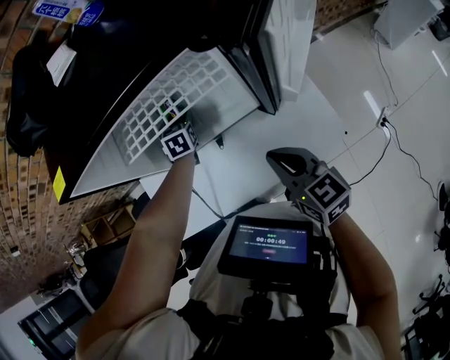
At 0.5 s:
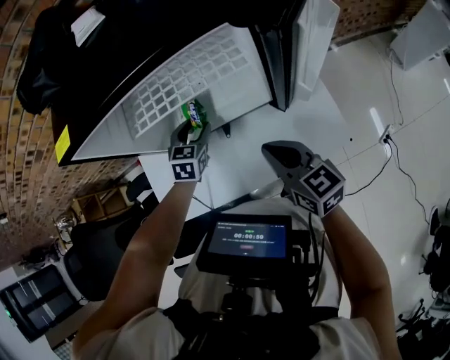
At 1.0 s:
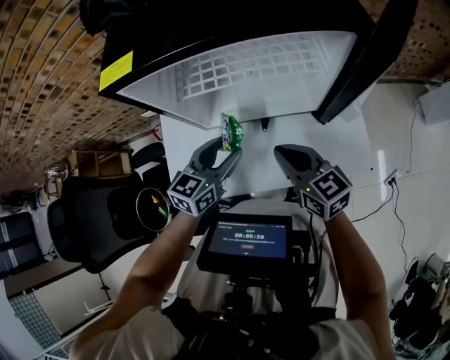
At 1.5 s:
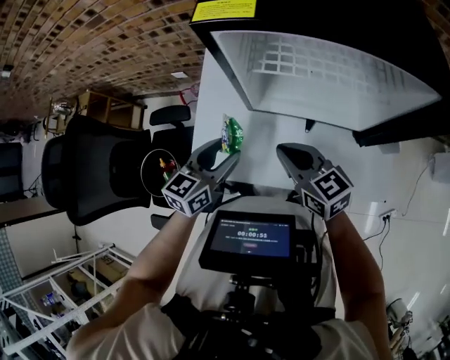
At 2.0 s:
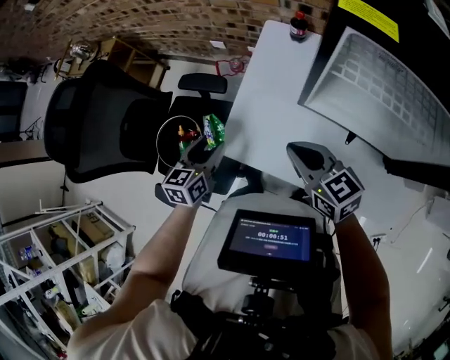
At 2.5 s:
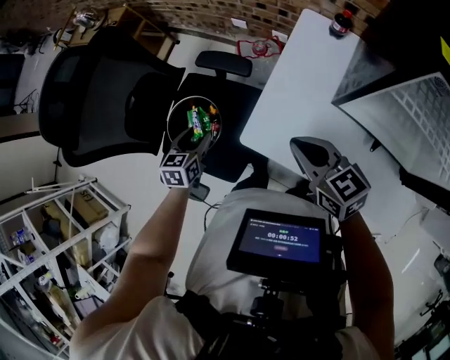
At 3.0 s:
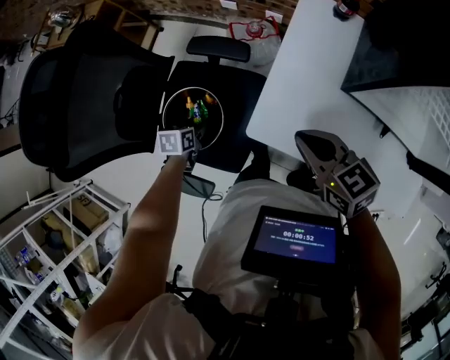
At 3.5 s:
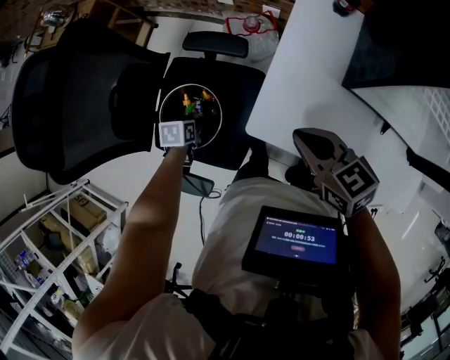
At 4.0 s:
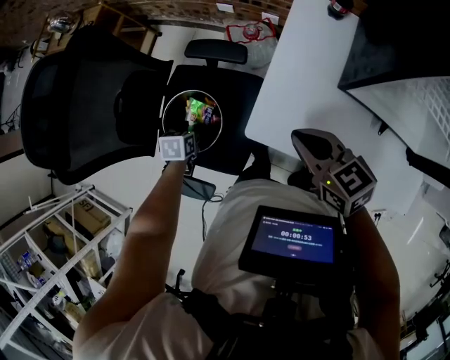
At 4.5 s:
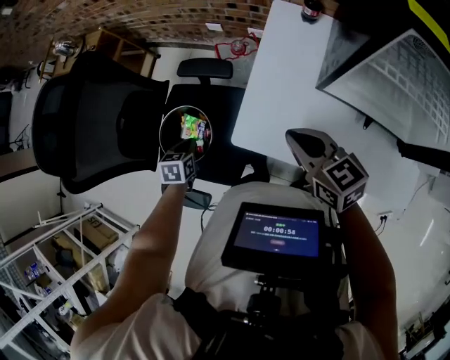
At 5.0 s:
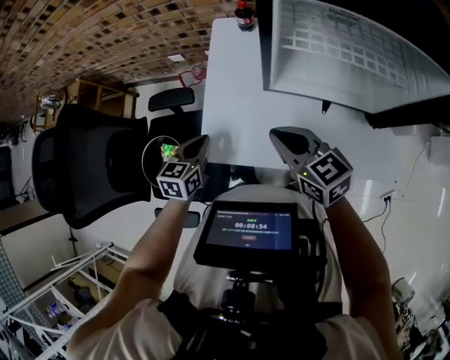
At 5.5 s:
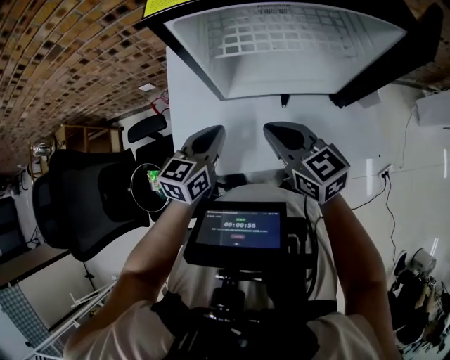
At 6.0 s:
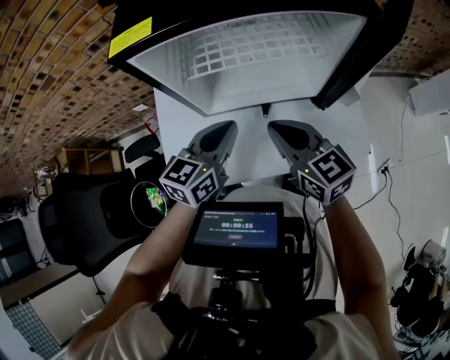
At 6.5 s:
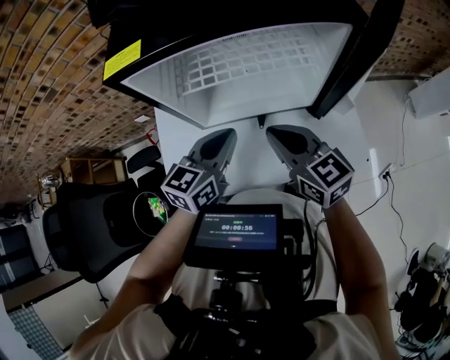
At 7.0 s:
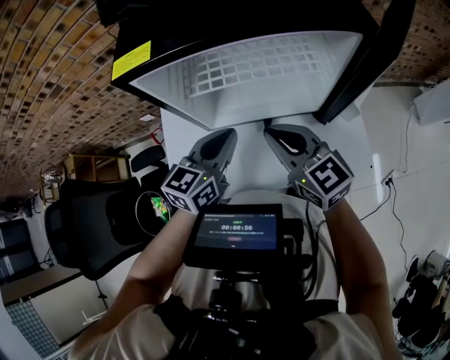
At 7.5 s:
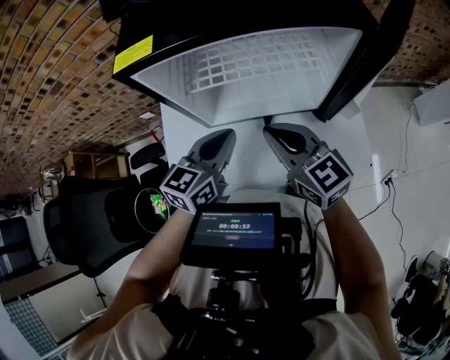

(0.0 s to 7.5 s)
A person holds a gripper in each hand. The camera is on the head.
0.0 s - 2.0 s: The left gripper ends up about 50 cm from where it was, and turns by roughly 40 degrees; the right gripper changes place by approximately 35 cm, and swivels approximately 50 degrees.
2.0 s - 4.0 s: The left gripper is displaced to the left and downward by some 30 cm, and angles its fingers downward, by about 30 degrees. Meanwhile the right gripper goes approximately 10 cm to the left.
4.0 s - 5.5 s: The left gripper ends up some 50 cm from where it was, tilts its fingers about 40 degrees upward, and closes. The right gripper ends up roughly 25 cm from where it was, and changes its angle by roughly 30 degrees.
5.5 s - 7.5 s: The grippers both shift to the right and upward by approximately 10 cm.

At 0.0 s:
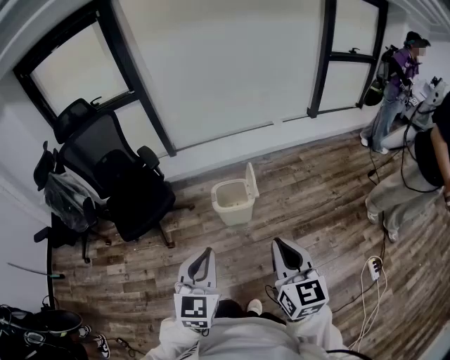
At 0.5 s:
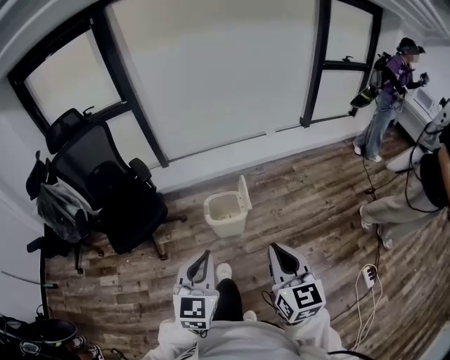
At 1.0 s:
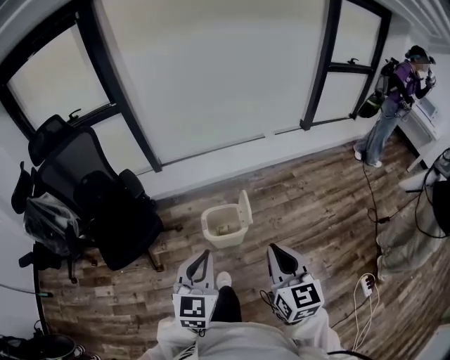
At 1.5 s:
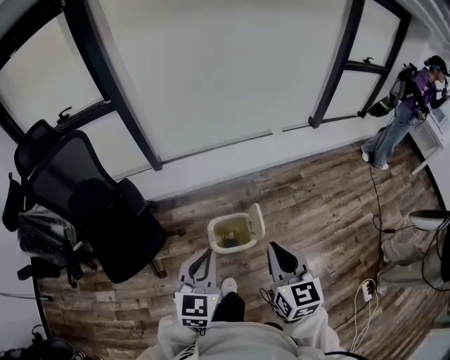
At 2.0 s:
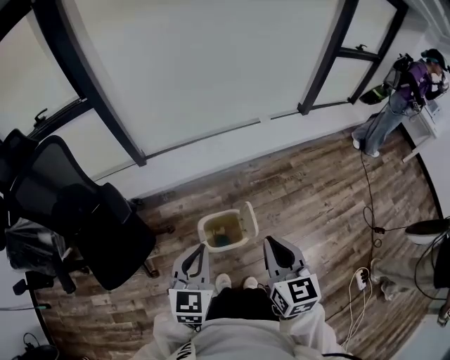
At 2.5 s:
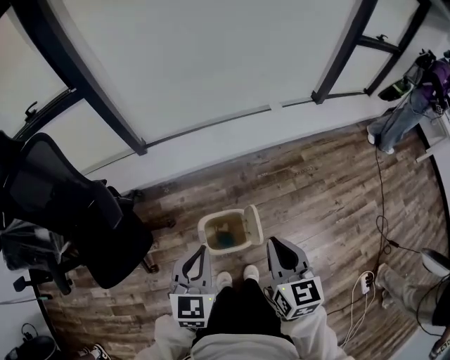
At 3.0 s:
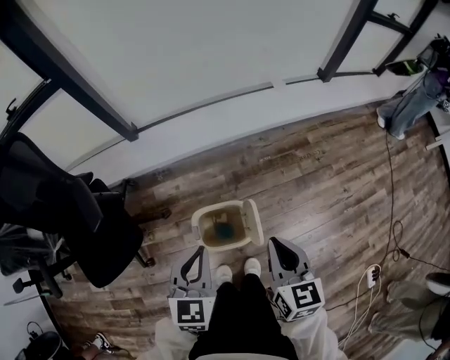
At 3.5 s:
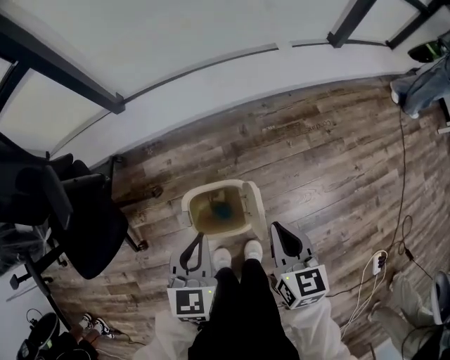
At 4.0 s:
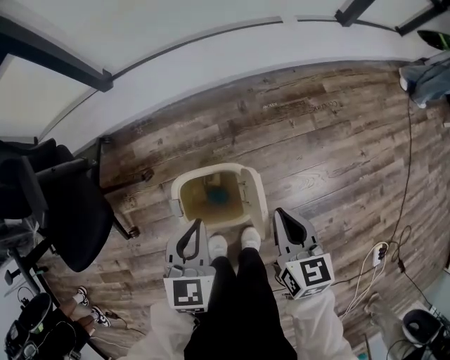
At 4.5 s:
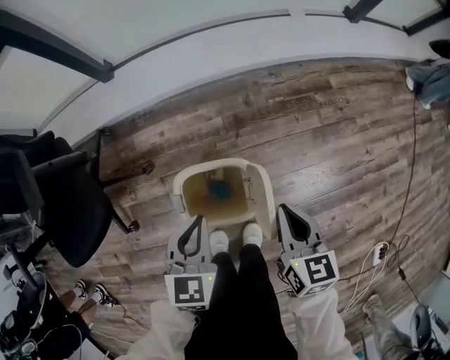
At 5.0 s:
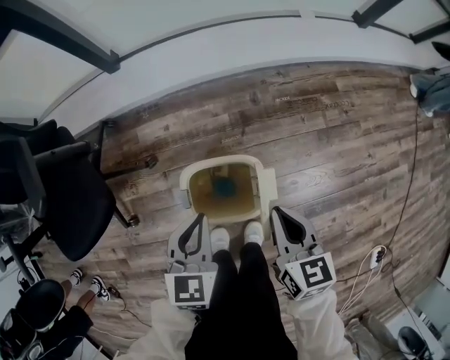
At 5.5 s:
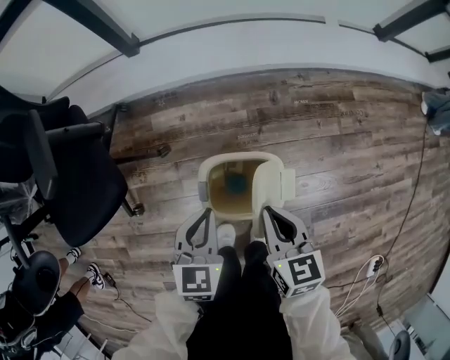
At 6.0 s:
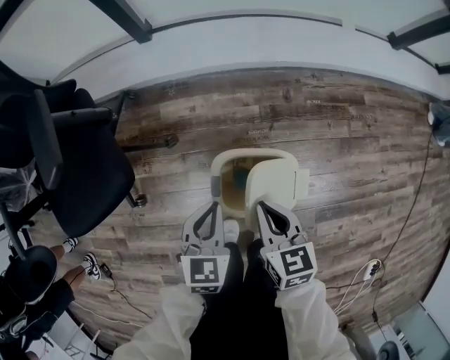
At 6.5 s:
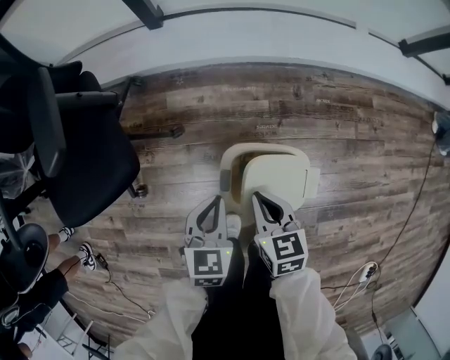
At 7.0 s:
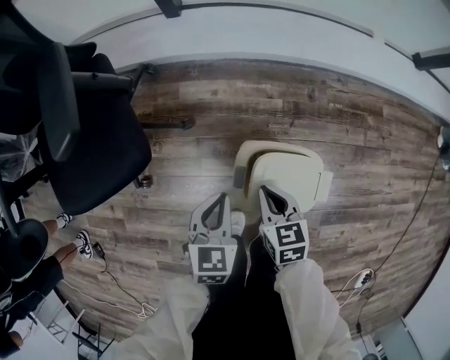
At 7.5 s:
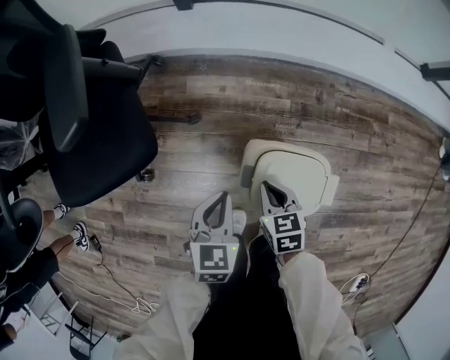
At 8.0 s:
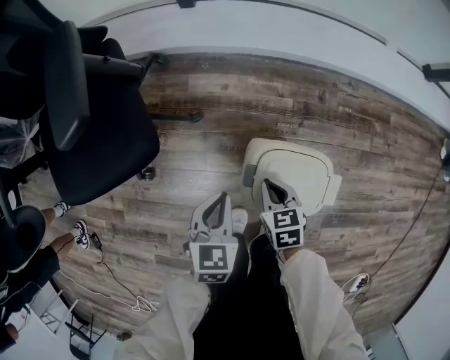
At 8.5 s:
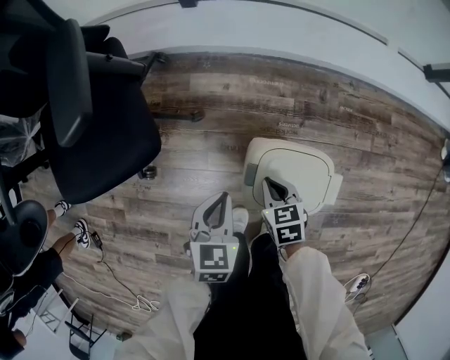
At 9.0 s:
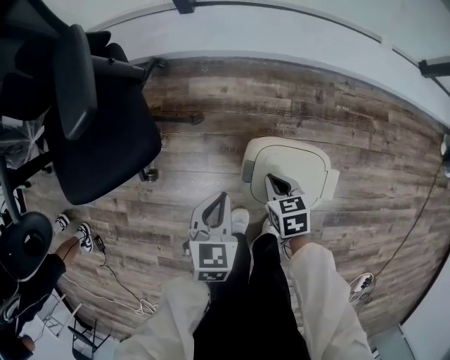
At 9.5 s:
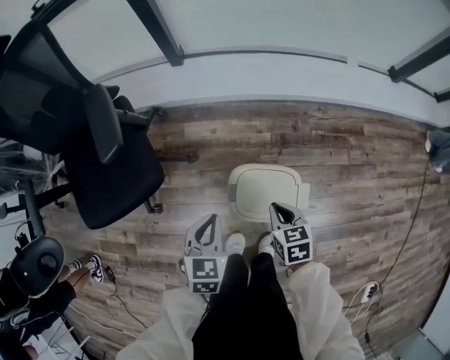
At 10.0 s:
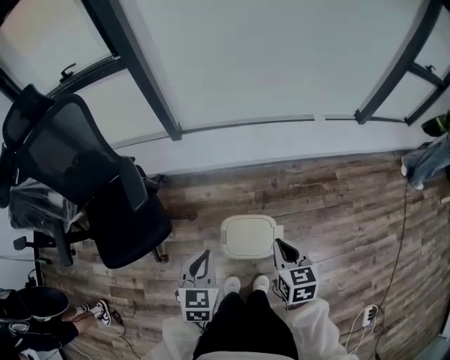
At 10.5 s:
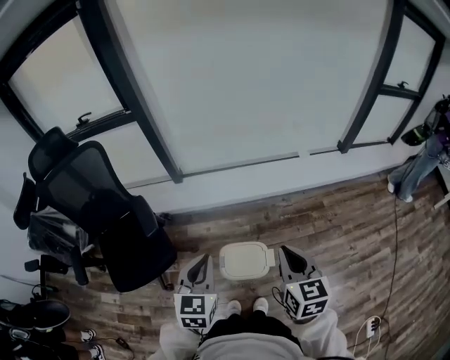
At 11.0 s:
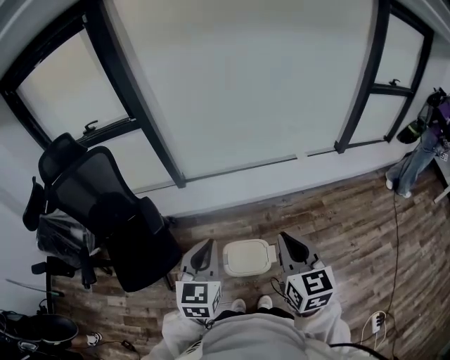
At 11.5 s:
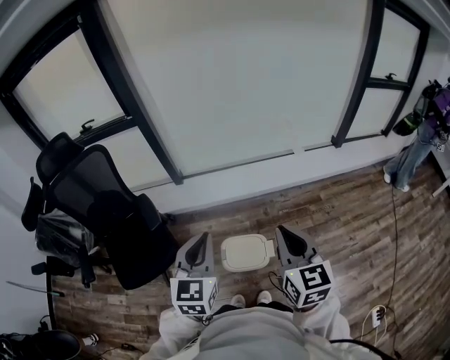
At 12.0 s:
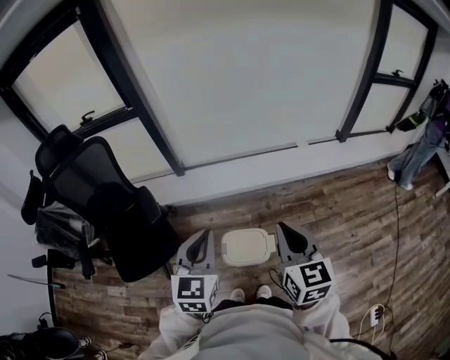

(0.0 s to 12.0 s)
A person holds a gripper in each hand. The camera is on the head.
0.0 s - 2.0 s: Both grippers are carried forward, roughly 40 cm.
2.0 s - 4.0 s: Both grippers travel together downward, approximately 40 cm.
4.0 s - 6.0 s: The right gripper heads to the left, covering approximately 20 cm. The left gripper is displaced to the left and downward by approximately 15 cm.
6.0 s - 8.0 s: The left gripper shifts about 10 cm to the left and downward. Meanwhile the right gripper shifts some 15 cm downward and to the left, and swivels approximately 20 degrees.
8.0 s - 10.0 s: The grippers both shift upward by roughly 35 cm. The right gripper swivels approximately 20 degrees.
10.0 s - 12.0 s: Both grippers travel together upward, approximately 30 cm. The right gripper changes its angle by approximately 20 degrees.

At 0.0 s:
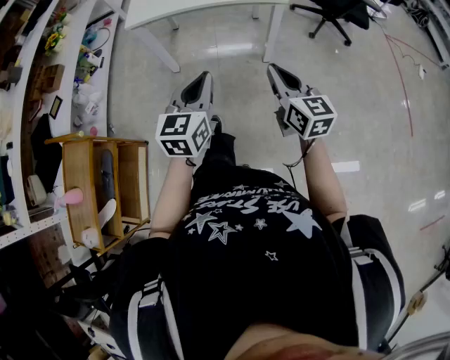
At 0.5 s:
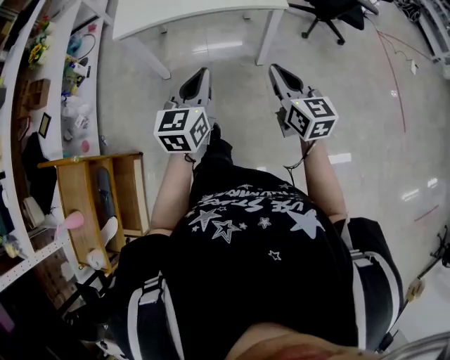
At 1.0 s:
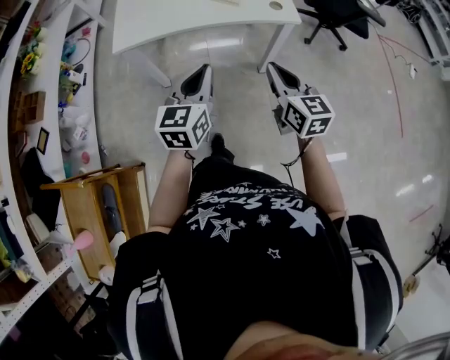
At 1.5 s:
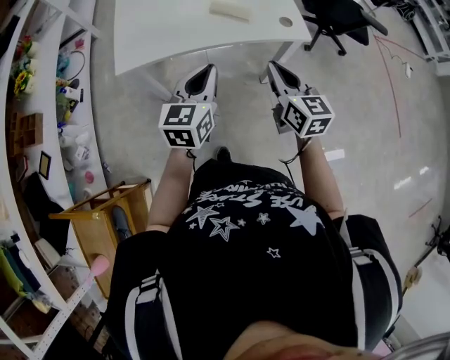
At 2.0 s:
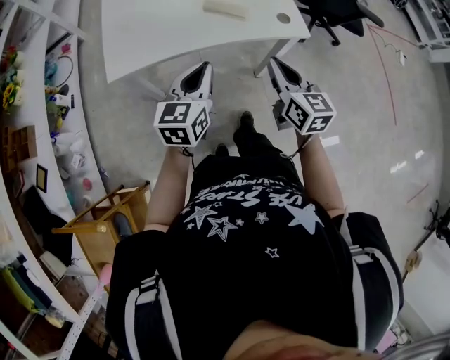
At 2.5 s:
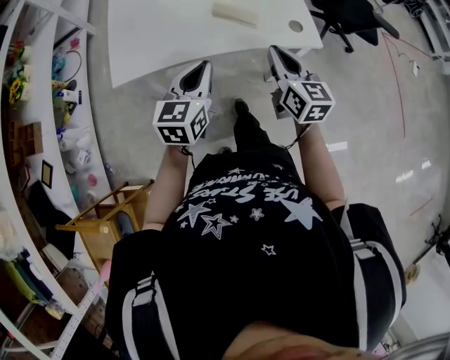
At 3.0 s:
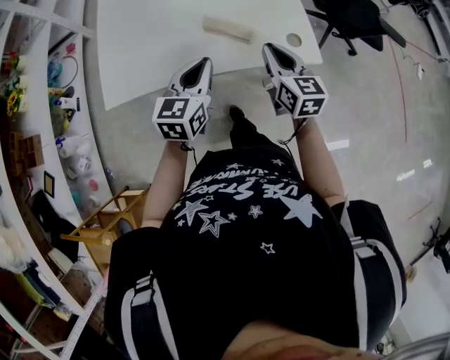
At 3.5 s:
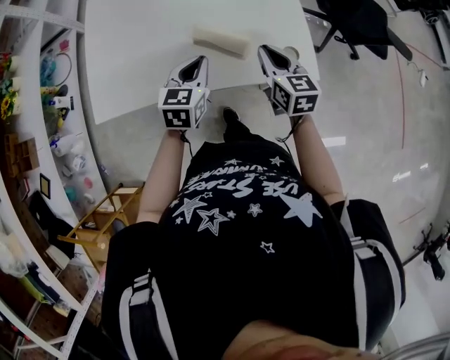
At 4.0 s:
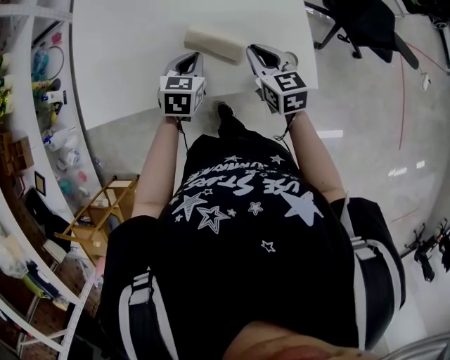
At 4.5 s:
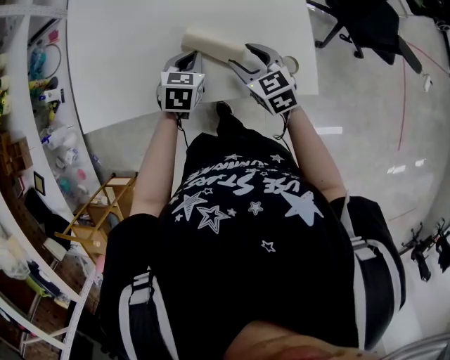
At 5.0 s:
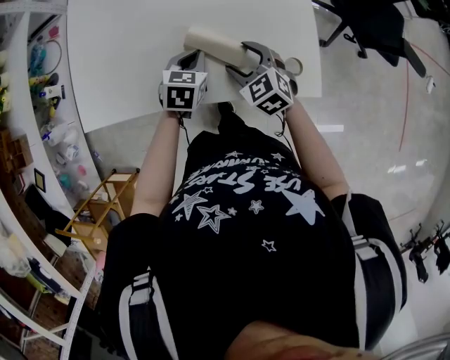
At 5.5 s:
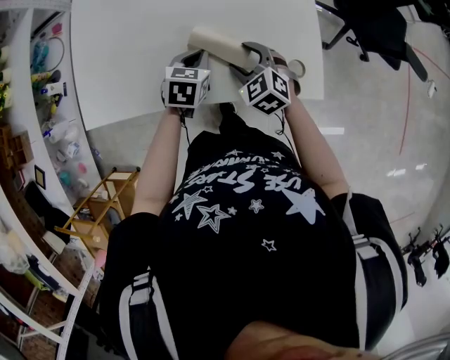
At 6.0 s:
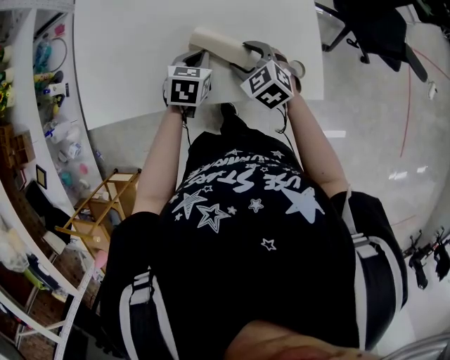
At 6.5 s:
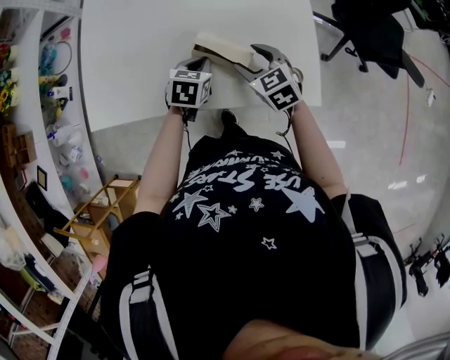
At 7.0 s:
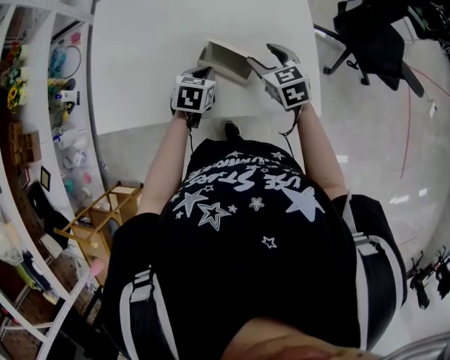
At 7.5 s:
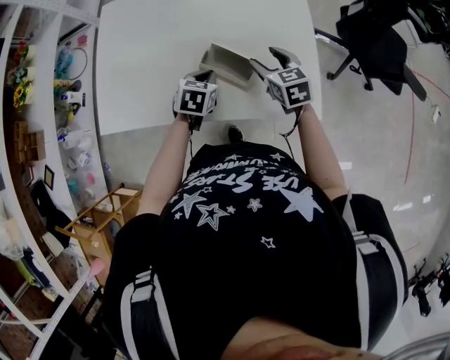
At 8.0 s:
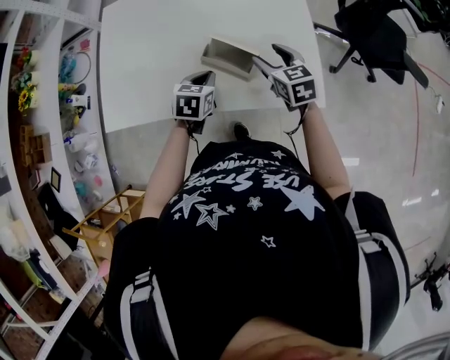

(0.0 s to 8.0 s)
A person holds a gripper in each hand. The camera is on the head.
0.0 s - 2.0 s: Both grippers travel together forward, approximately 35 cm.
2.0 s - 4.0 s: Both grippers travel together forward and downward, some 30 cm. The right gripper changes its angle by about 20 degrees, while the left gripper turns by some 30 degrees.
4.0 s - 6.0 s: The right gripper shifts about 5 cm downward, rotates about 40 degrees, and opens up.
6.0 s - 8.0 s: The right gripper goes roughly 10 cm to the right and upward, and rotates roughly 30 degrees.
